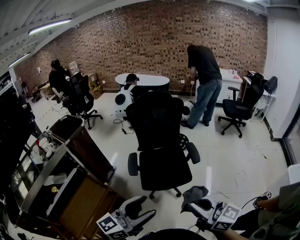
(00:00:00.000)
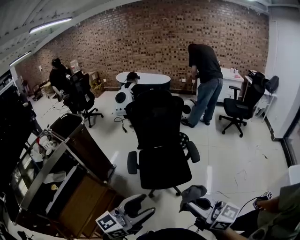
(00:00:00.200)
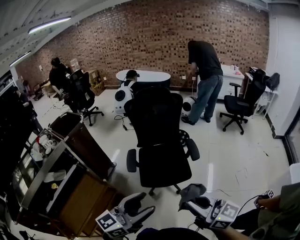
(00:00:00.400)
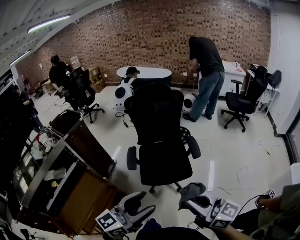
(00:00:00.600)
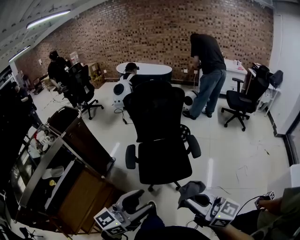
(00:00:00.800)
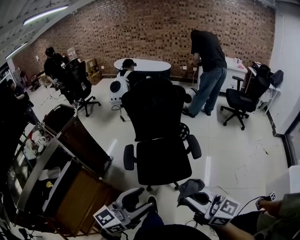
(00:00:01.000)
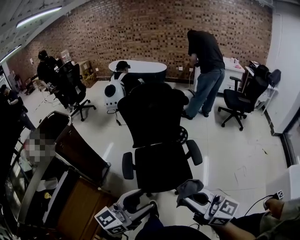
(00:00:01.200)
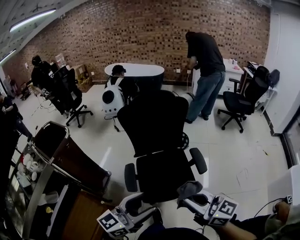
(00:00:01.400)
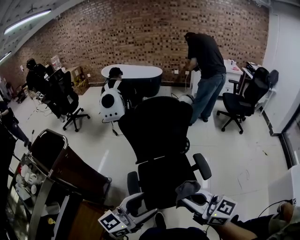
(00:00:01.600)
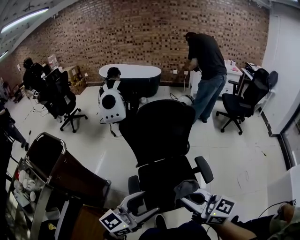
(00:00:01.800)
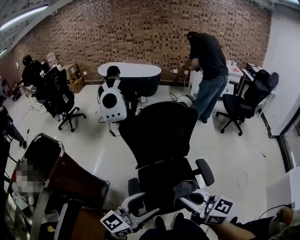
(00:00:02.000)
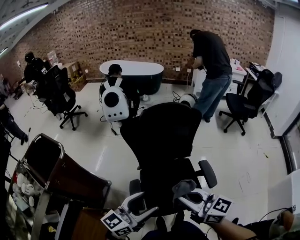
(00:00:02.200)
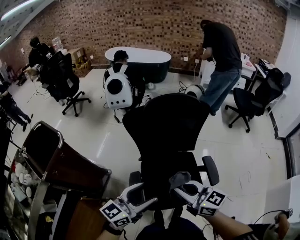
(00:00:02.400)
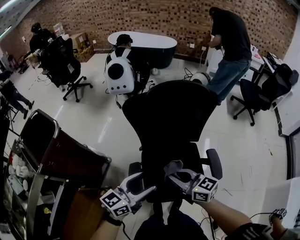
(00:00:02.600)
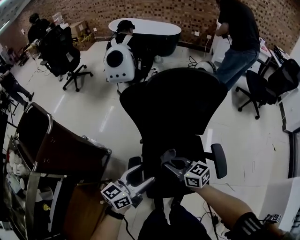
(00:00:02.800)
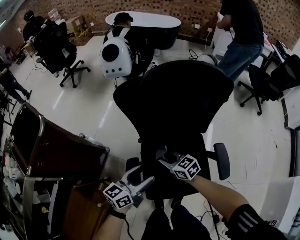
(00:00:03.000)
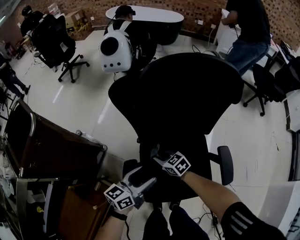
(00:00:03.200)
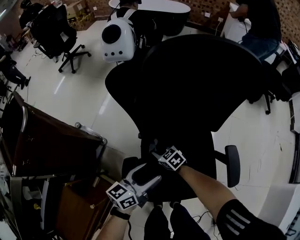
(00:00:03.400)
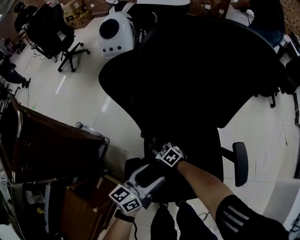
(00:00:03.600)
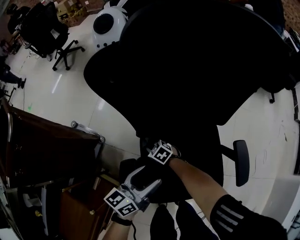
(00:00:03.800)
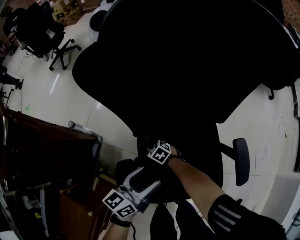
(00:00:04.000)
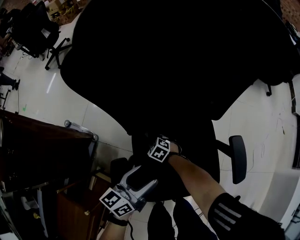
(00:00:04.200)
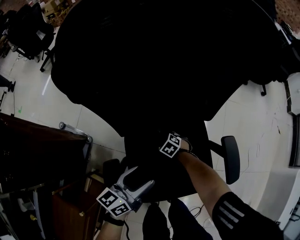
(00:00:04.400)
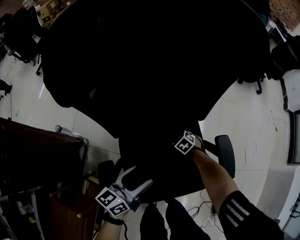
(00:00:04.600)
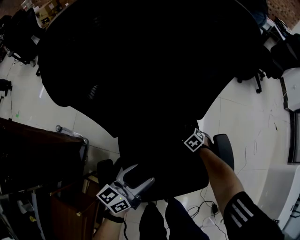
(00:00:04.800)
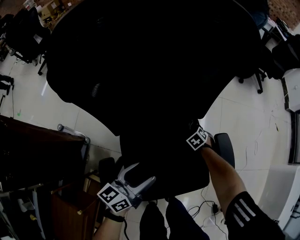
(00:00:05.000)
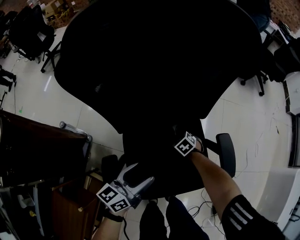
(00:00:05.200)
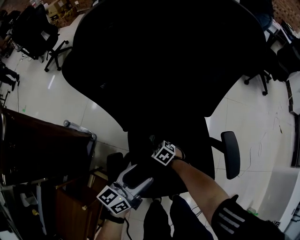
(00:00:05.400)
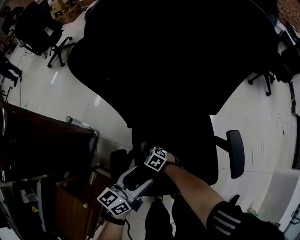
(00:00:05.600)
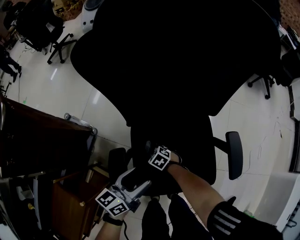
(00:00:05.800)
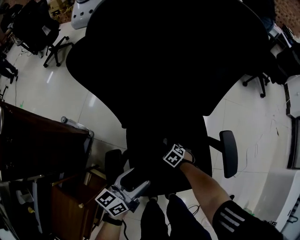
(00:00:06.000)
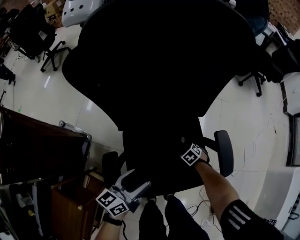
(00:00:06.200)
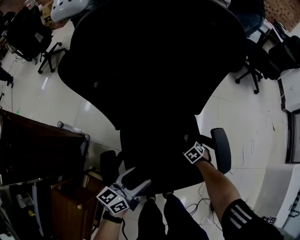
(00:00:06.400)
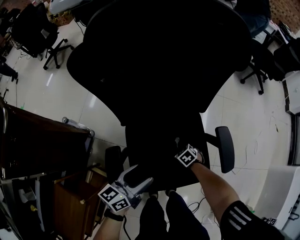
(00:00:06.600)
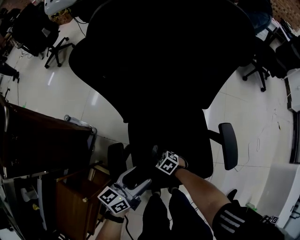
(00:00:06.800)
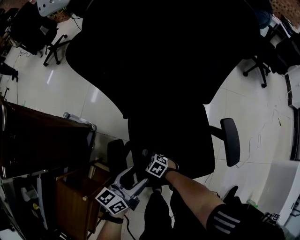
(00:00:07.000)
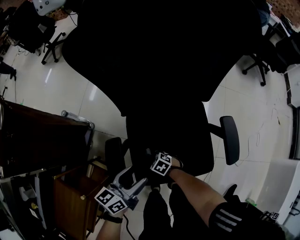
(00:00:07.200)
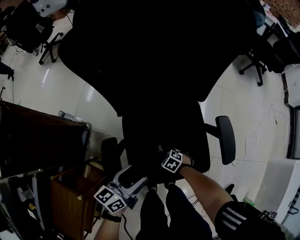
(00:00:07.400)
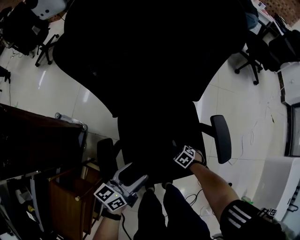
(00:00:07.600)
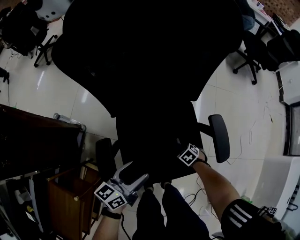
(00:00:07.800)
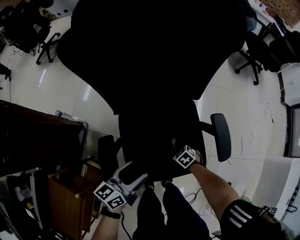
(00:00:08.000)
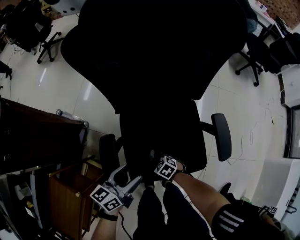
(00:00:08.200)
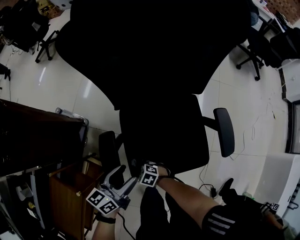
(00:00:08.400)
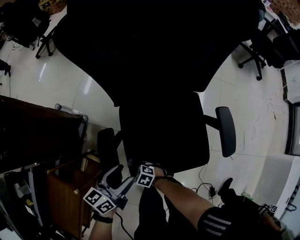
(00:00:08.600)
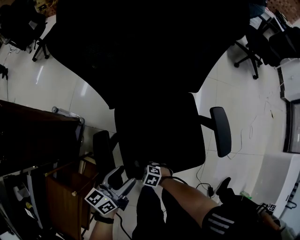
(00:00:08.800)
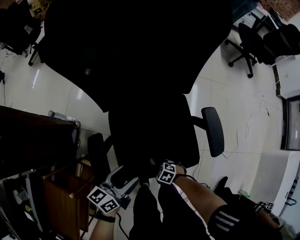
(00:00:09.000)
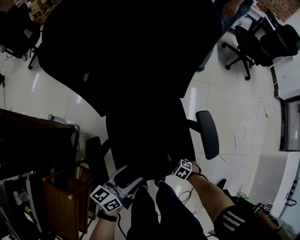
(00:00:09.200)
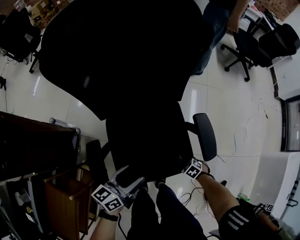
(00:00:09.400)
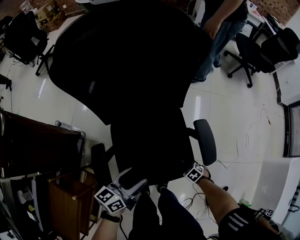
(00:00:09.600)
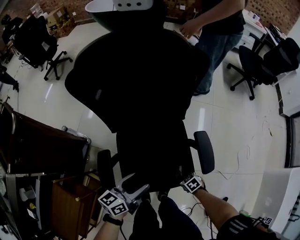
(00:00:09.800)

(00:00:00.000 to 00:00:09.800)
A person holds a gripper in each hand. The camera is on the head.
00:00:00.000 - 00:00:01.400: The grippers both shift forward by some 25 cm.
00:00:01.400 - 00:00:02.800: The left gripper travels forward and downward by about 35 cm, and swivels some 20 degrees. Meanwhile the right gripper moves forward, downward and to the left, some 40 cm, and turns by about 30 degrees.
00:00:02.800 - 00:00:04.200: The right gripper heads downward, covering approximately 40 cm, and angles its fingers downward, by approximately 40 degrees. The left gripper shifts about 20 cm downward.
00:00:05.600 - 00:00:07.000: The left gripper changes place by roughly 5 cm.
00:00:08.400 - 00:00:09.800: The left gripper shifts by approximately 15 cm; the right gripper changes place by about 35 cm, and rotates some 30 degrees.

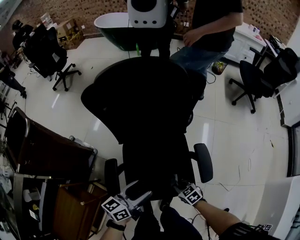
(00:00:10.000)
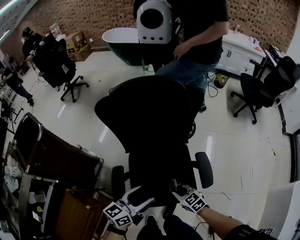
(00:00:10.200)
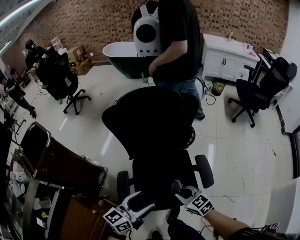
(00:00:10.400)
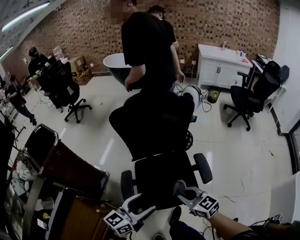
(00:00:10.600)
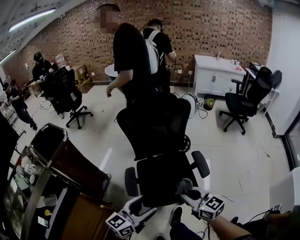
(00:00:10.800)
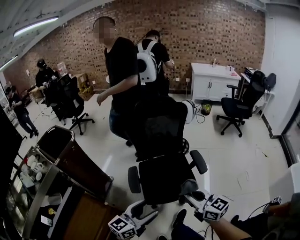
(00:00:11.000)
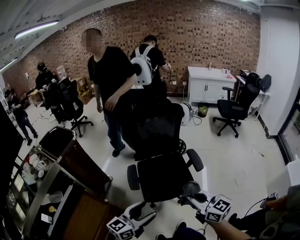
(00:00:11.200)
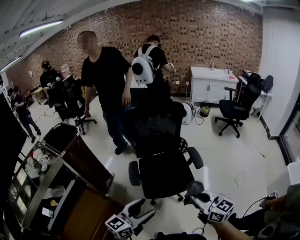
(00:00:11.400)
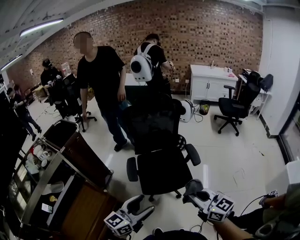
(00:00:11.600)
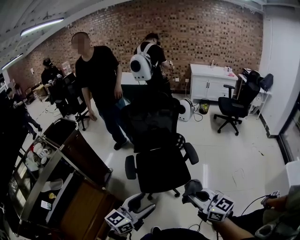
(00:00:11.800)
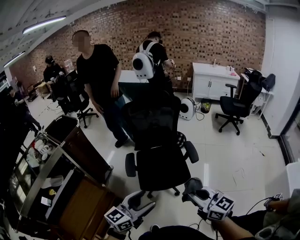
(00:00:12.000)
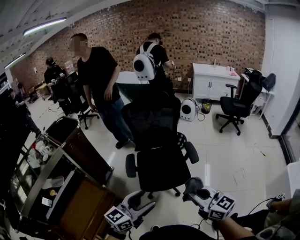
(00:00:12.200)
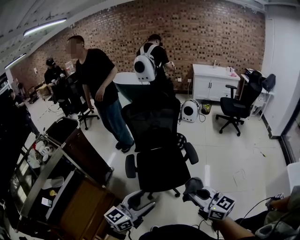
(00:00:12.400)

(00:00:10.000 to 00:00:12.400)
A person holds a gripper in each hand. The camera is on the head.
00:00:10.000 - 00:00:11.200: The left gripper goes roughly 40 cm backward and upward, and turns by roughly 20 degrees. The right gripper shifts about 50 cm upward and backward, and tips its fingers upward by about 50 degrees.
00:00:11.200 - 00:00:12.400: The left gripper moves to the right and backward, roughly 10 cm, while the right gripper moves backward and to the right, approximately 10 cm.

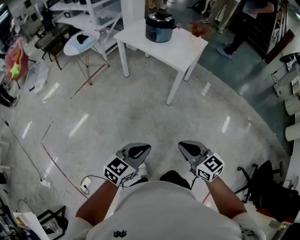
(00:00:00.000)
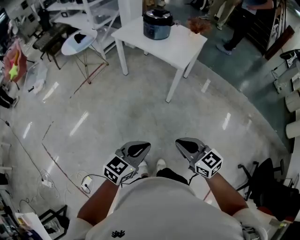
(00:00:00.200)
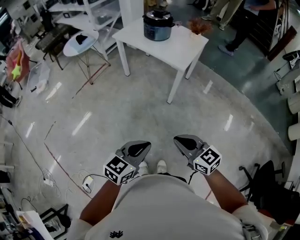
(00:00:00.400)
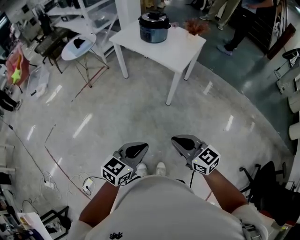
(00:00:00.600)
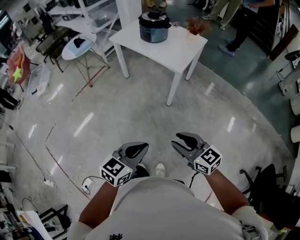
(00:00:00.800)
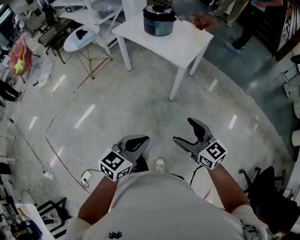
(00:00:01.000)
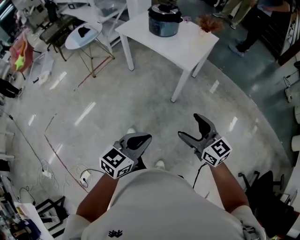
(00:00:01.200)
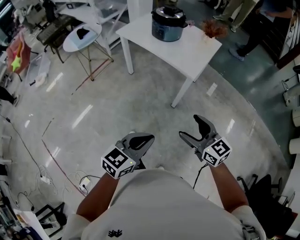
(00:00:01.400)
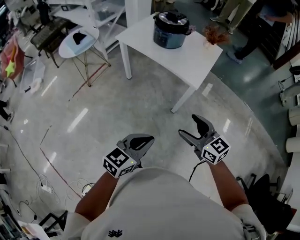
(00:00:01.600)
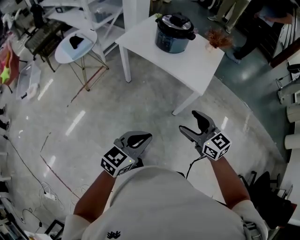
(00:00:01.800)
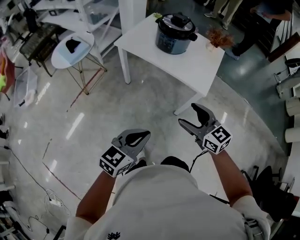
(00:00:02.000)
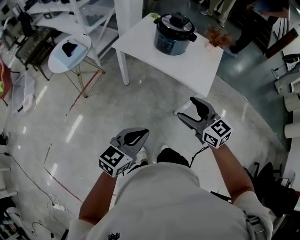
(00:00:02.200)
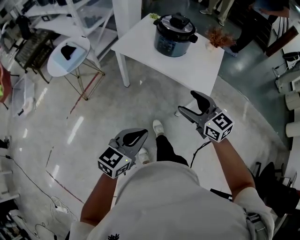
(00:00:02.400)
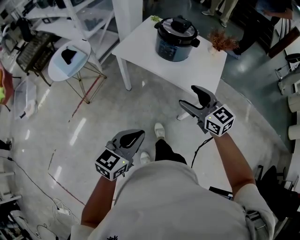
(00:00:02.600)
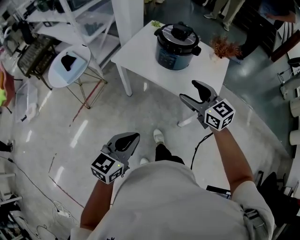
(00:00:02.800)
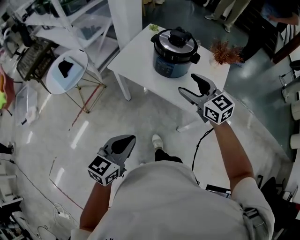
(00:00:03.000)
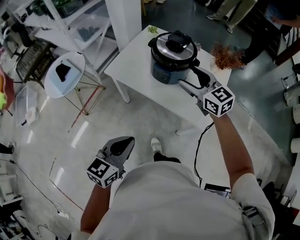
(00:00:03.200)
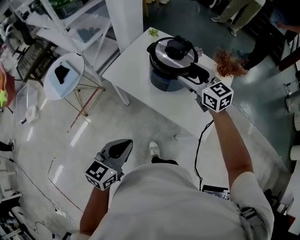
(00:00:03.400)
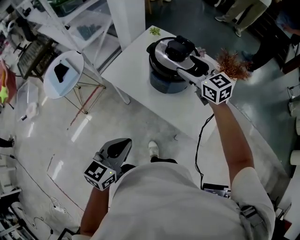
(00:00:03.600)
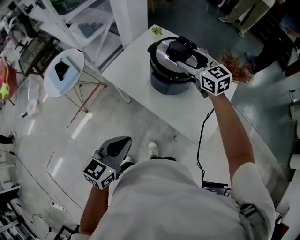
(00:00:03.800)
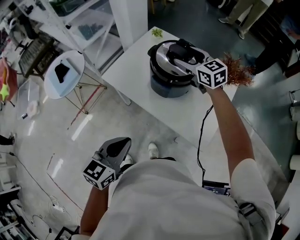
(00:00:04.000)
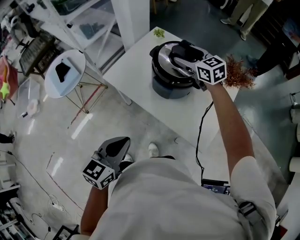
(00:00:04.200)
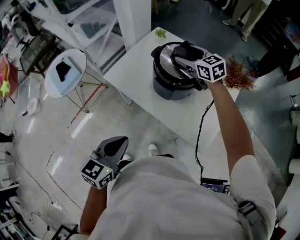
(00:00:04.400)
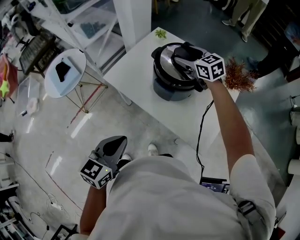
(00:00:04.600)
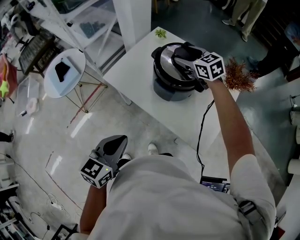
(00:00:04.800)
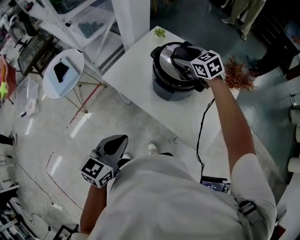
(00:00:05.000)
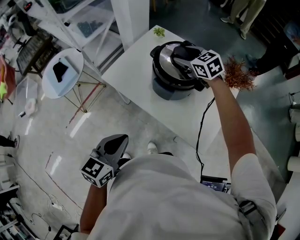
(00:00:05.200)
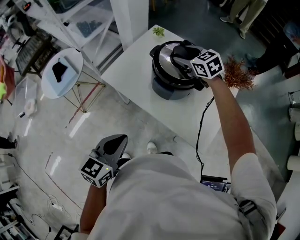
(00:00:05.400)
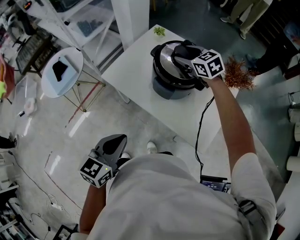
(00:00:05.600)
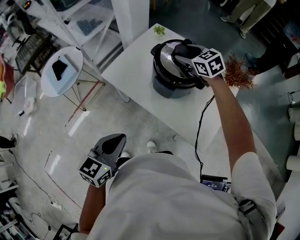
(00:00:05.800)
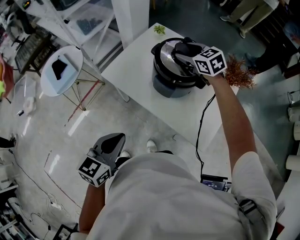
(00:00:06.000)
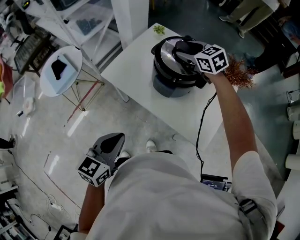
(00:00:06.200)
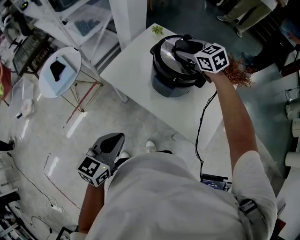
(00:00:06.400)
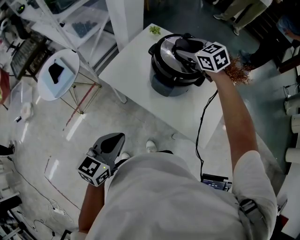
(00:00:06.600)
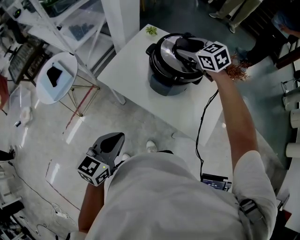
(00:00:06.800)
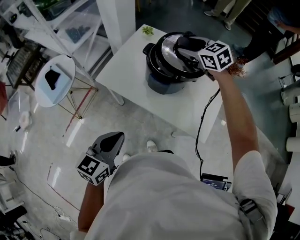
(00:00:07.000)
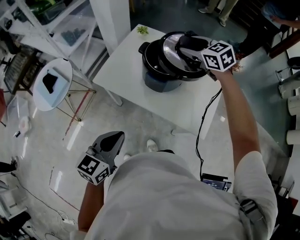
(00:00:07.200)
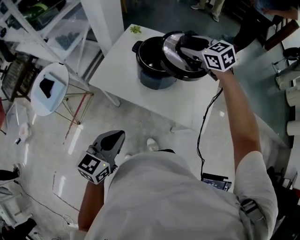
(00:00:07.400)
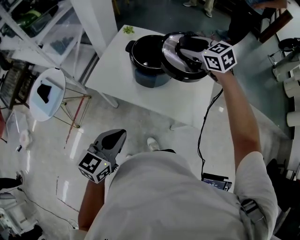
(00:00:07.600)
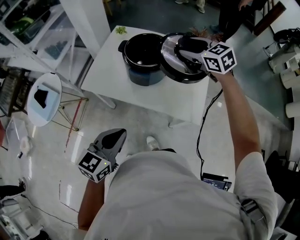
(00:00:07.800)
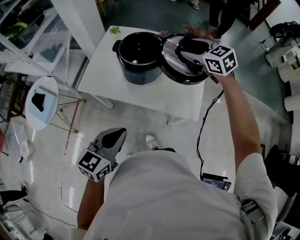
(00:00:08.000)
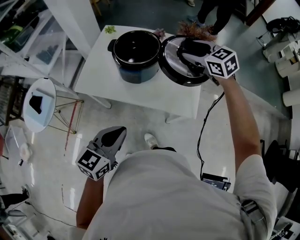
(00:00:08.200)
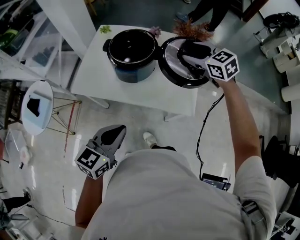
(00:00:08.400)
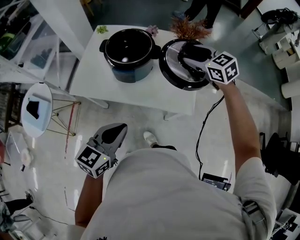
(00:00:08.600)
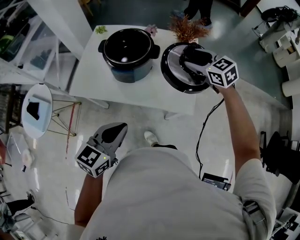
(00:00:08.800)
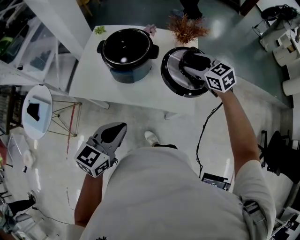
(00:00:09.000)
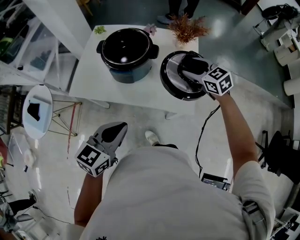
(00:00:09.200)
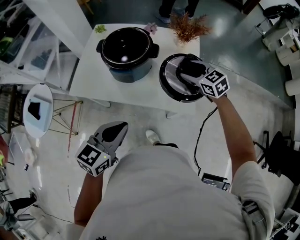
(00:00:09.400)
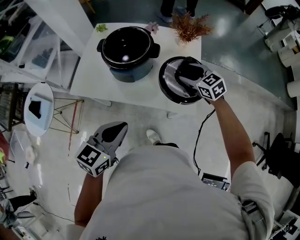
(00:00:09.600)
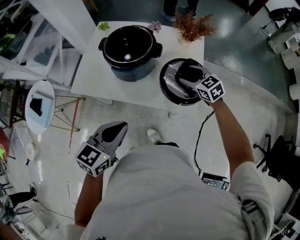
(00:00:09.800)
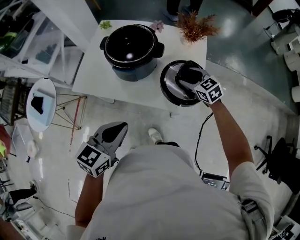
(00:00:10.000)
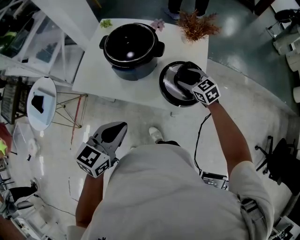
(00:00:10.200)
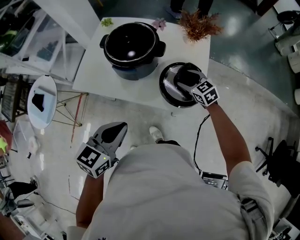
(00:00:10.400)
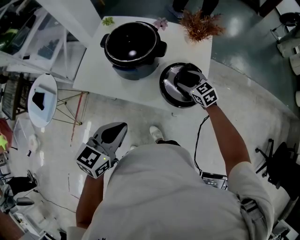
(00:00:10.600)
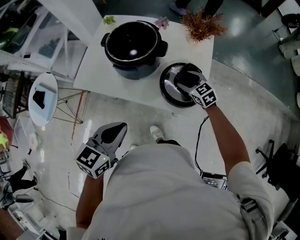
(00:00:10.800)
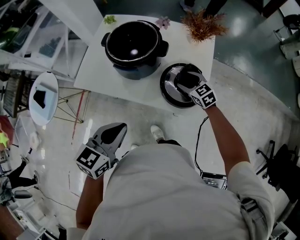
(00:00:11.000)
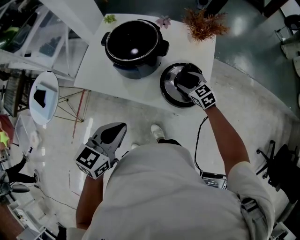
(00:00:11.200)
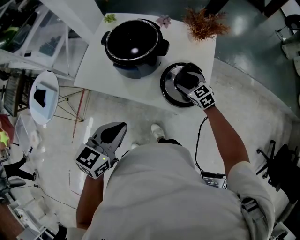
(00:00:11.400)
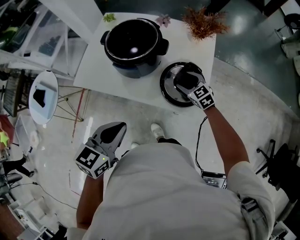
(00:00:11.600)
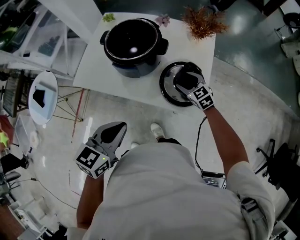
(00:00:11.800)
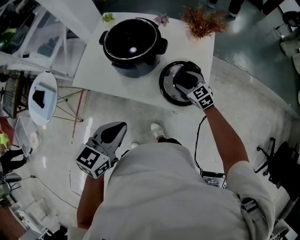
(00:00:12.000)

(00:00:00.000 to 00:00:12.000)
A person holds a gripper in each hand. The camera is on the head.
00:00:00.000 - 00:00:01.600: The two grippers go about 25 cm forward. The right gripper opens its fingers.
00:00:01.600 - 00:00:03.000: The left gripper goes some 35 cm forward and to the left, while the right gripper shifts about 40 cm forward.
00:00:03.000 - 00:00:04.400: The right gripper shifts about 30 cm forward, while the left gripper goes approximately 15 cm forward.
00:00:04.400 - 00:00:06.000: There are only small adjustments of the grippers.
00:00:06.000 - 00:00:07.600: The right gripper shifts some 15 cm to the right, backward and upward.
00:00:07.600 - 00:00:09.000: The right gripper is displaced to the right, downward and backward by some 20 cm, while the left gripper moves to the right, some 5 cm.
00:00:09.000 - 00:00:10.400: The right gripper moves downward, about 15 cm.
00:00:10.400 - 00:00:12.000: The grippers make only small movements.
